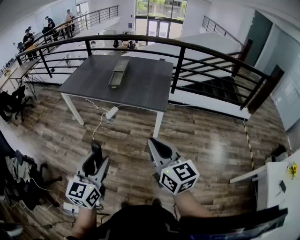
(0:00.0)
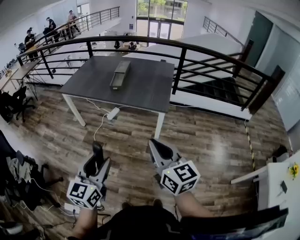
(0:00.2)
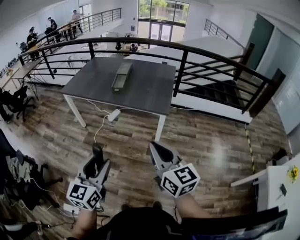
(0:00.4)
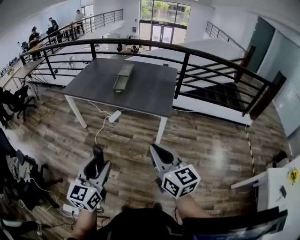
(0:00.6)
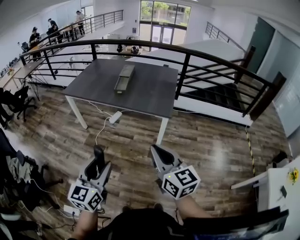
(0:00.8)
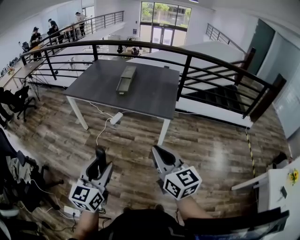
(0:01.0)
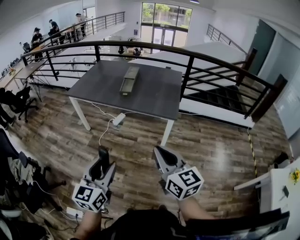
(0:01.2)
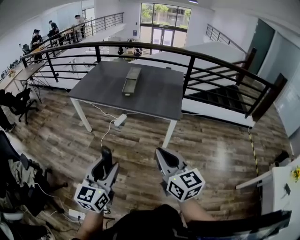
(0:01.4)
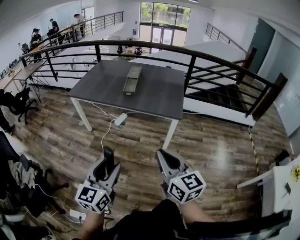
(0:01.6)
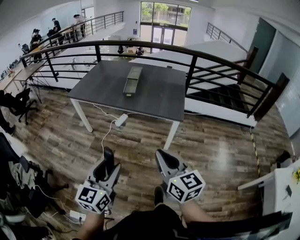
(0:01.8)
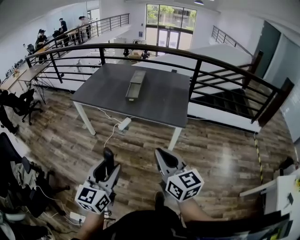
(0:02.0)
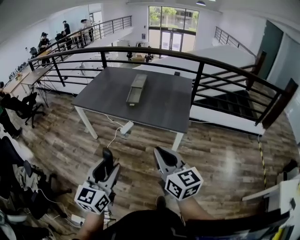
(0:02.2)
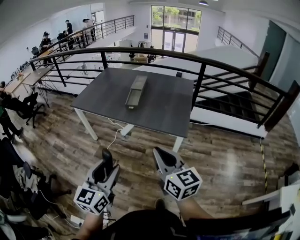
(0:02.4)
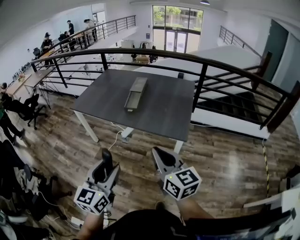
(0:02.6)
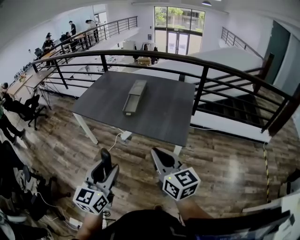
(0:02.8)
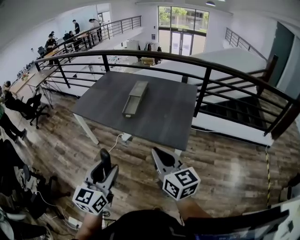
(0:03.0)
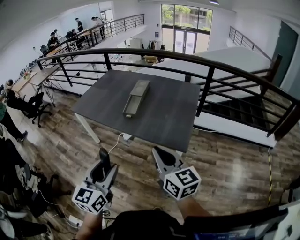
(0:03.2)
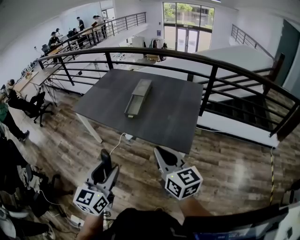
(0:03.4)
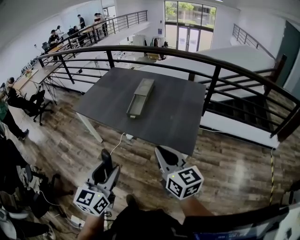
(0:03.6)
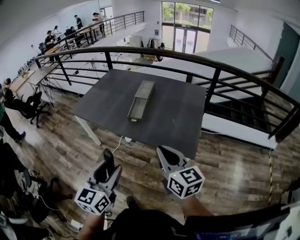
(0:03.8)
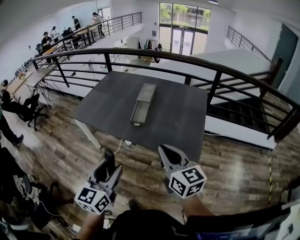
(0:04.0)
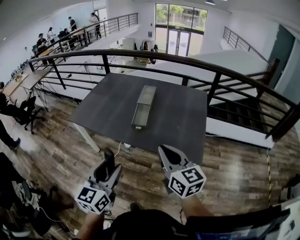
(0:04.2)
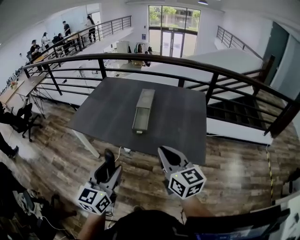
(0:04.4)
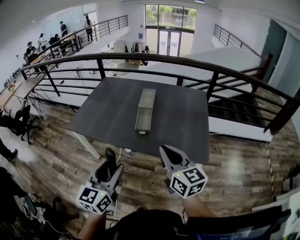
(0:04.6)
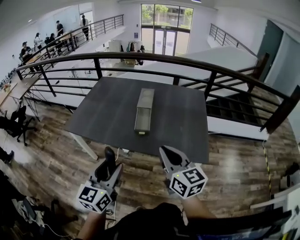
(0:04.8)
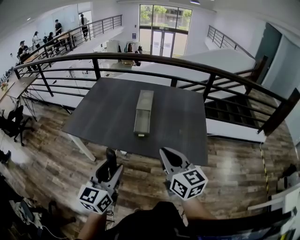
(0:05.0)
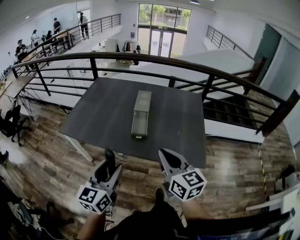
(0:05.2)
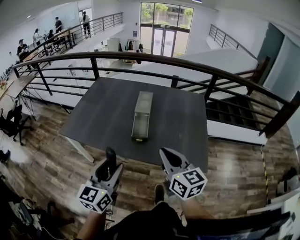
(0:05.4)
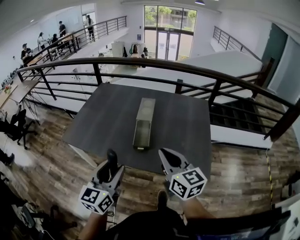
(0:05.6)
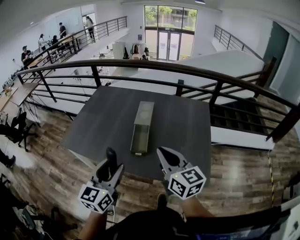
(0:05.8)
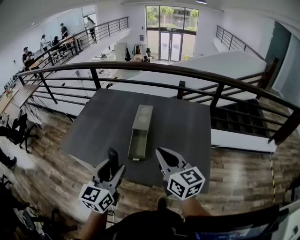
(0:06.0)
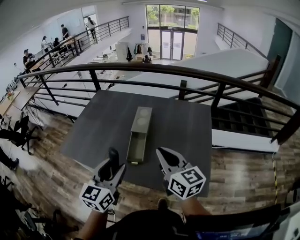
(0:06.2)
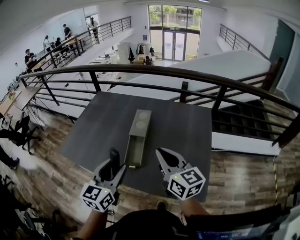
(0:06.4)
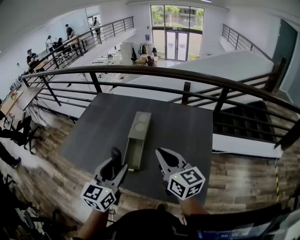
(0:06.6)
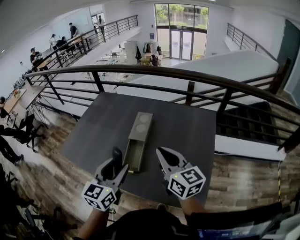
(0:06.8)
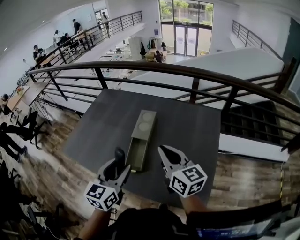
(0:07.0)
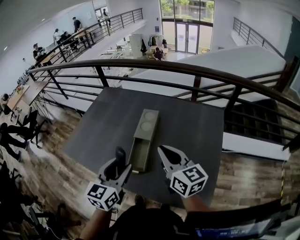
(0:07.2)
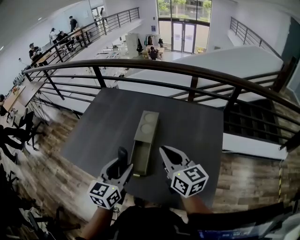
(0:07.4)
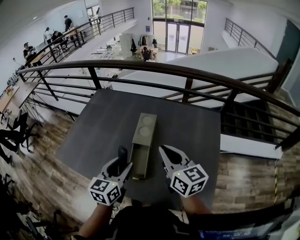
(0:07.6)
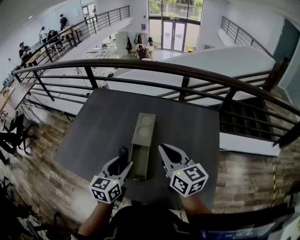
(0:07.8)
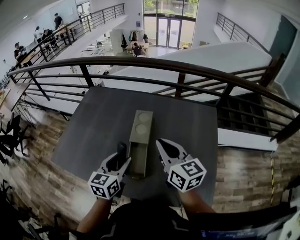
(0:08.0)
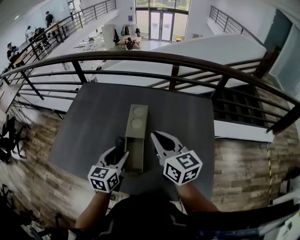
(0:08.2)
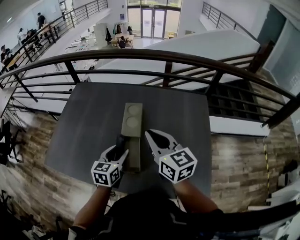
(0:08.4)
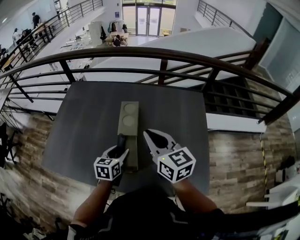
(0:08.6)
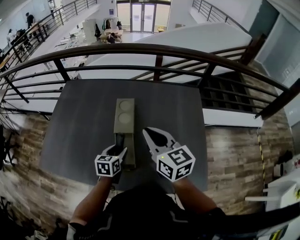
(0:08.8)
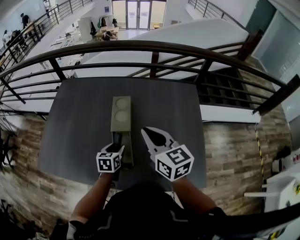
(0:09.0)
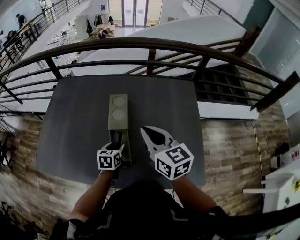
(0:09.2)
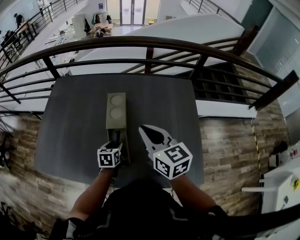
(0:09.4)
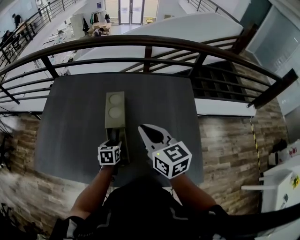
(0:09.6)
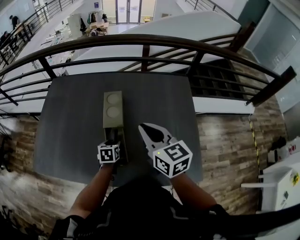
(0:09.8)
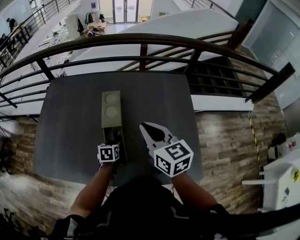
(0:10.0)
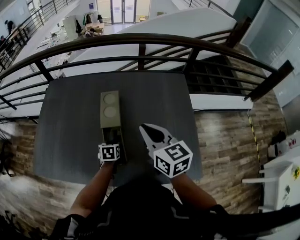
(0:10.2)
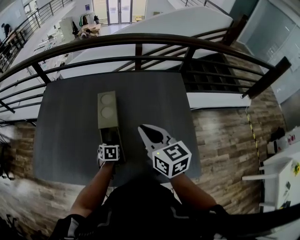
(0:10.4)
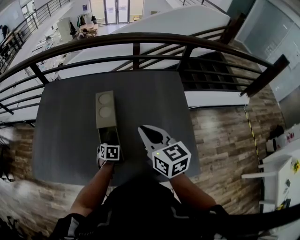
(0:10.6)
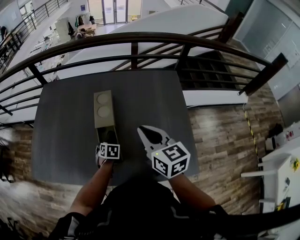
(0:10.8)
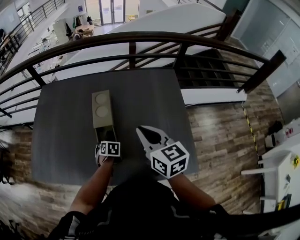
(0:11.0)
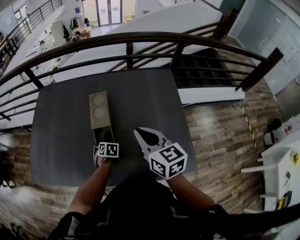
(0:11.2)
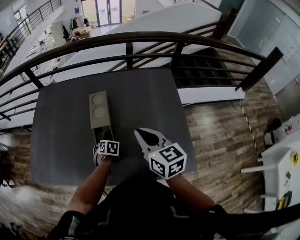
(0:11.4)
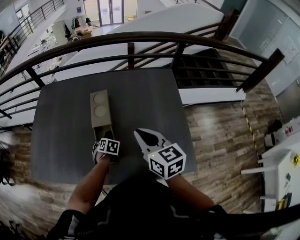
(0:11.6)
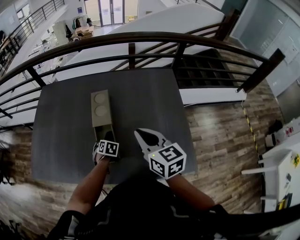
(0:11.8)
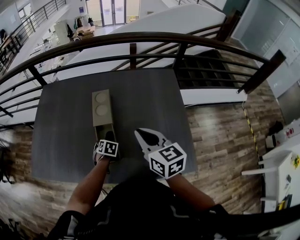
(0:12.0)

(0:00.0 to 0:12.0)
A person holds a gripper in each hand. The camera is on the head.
0:00.0 - 0:01.6: Both grippers move to the left, roughly 10 cm.
0:01.6 - 0:03.0: Both grippers travel together forward and to the right, about 25 cm.
0:03.0 - 0:04.4: Both grippers travel together forward and to the left, approximately 25 cm.
0:04.4 - 0:06.0: Both grippers travel together forward, some 25 cm.
0:06.0 - 0:07.6: The grippers both shift forward by roughly 20 cm.
0:07.6 - 0:09.0: The right gripper changes place by approximately 5 cm. Meanwhile the left gripper goes roughly 25 cm downward and forward, and changes its angle by some 30 degrees.
0:09.0 - 0:10.4: The left gripper is displaced downward by roughly 10 cm, and turns by some 20 degrees.
0:10.4 - 0:12.0: There are only small adjustments of the grippers.

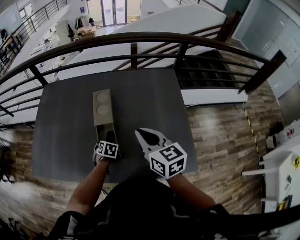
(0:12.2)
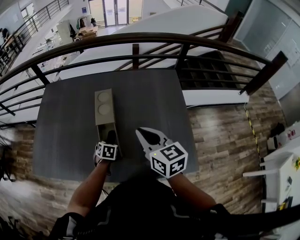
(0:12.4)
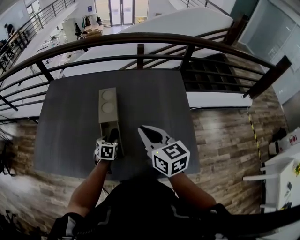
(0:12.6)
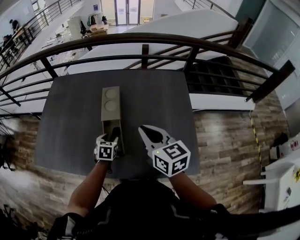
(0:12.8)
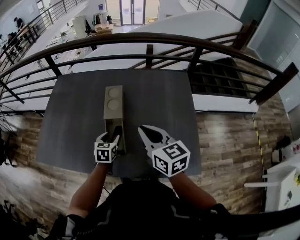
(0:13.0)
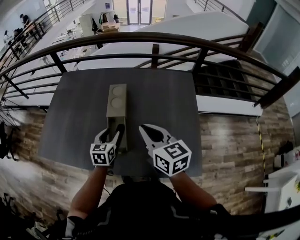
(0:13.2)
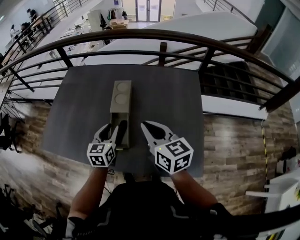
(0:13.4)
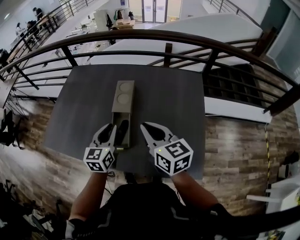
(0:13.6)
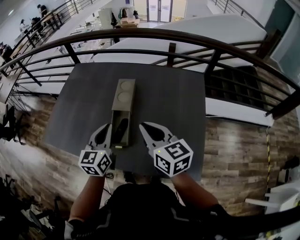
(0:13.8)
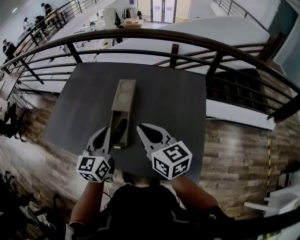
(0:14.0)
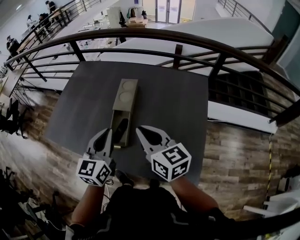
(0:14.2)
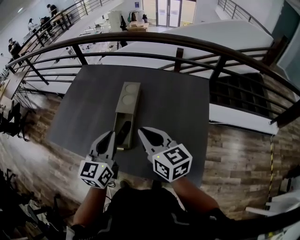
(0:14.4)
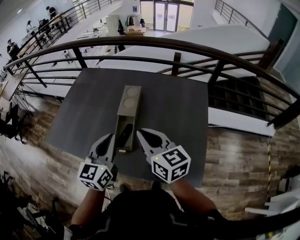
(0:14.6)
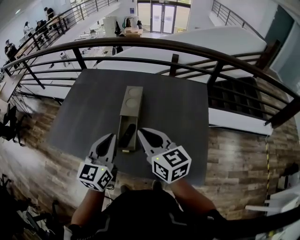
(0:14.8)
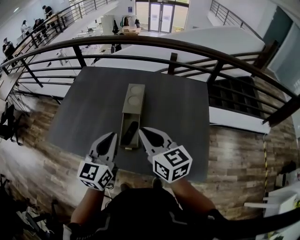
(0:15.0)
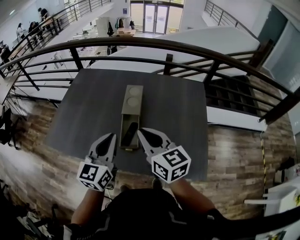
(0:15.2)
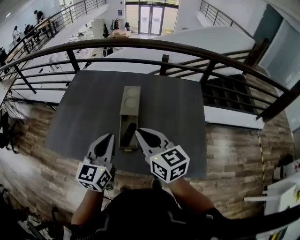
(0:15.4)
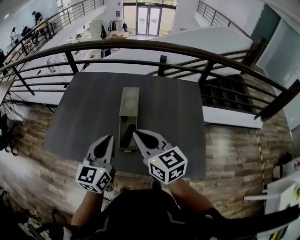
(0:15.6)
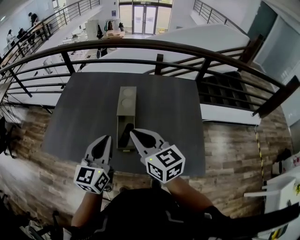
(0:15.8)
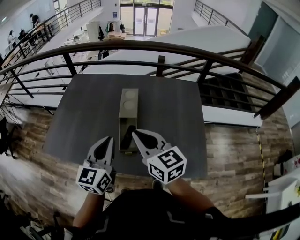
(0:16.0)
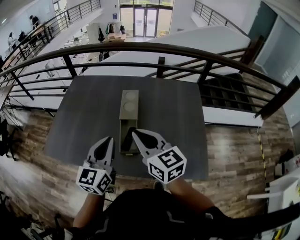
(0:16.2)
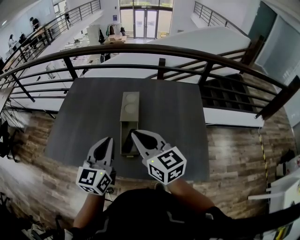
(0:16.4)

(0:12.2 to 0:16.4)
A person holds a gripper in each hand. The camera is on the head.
0:12.2 - 0:13.6: The left gripper is displaced upward by approximately 25 cm, points its fingers some 50 degrees further upward, and closes up.
0:13.6 - 0:15.0: The left gripper is displaced upward, backward and to the left by approximately 15 cm; the right gripper goes about 10 cm to the left.
0:15.0 - 0:16.4: The grippers stay close to where they were, moving slightly.

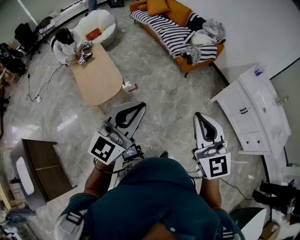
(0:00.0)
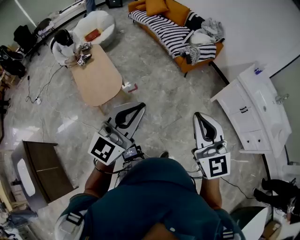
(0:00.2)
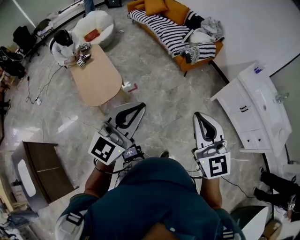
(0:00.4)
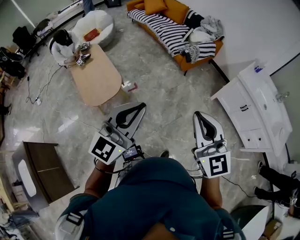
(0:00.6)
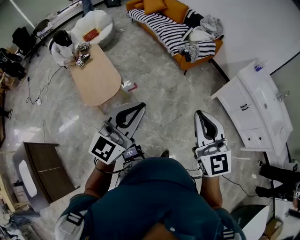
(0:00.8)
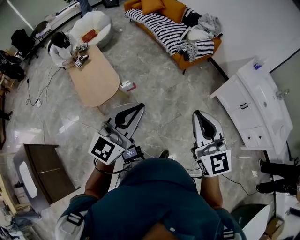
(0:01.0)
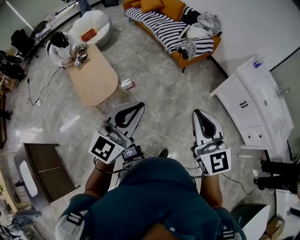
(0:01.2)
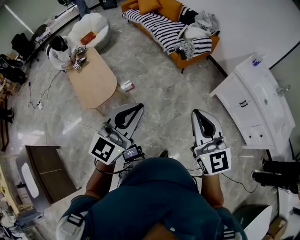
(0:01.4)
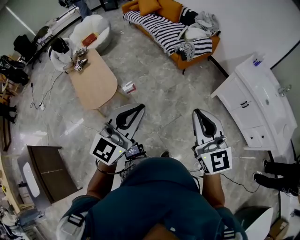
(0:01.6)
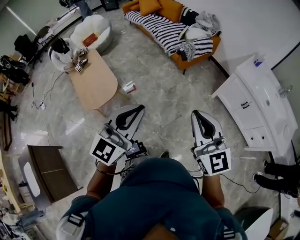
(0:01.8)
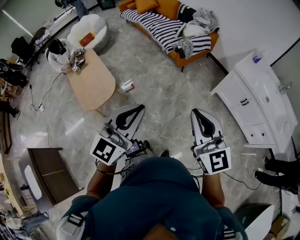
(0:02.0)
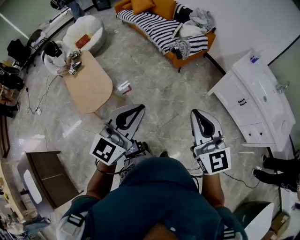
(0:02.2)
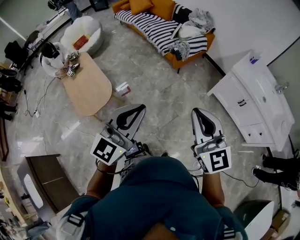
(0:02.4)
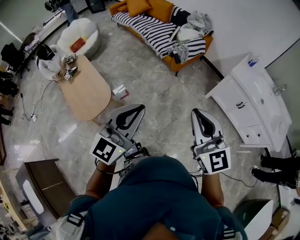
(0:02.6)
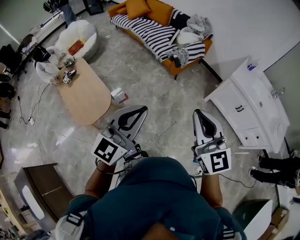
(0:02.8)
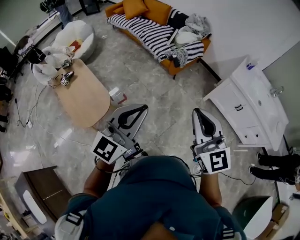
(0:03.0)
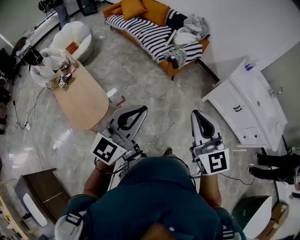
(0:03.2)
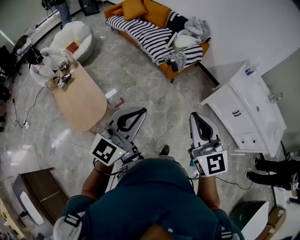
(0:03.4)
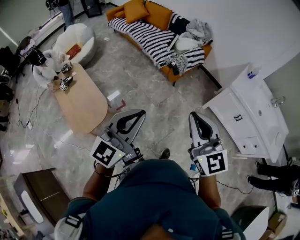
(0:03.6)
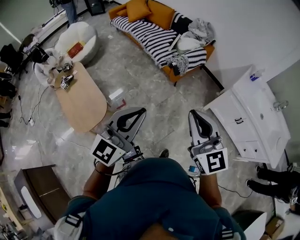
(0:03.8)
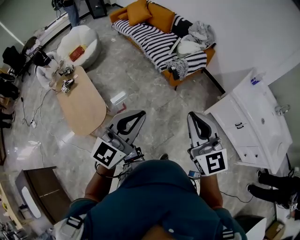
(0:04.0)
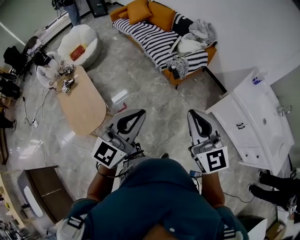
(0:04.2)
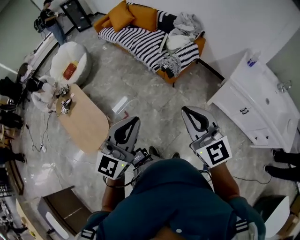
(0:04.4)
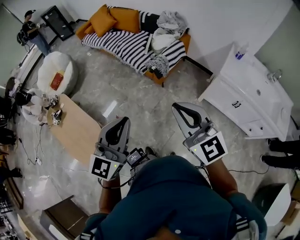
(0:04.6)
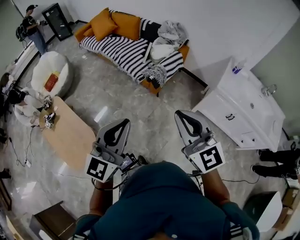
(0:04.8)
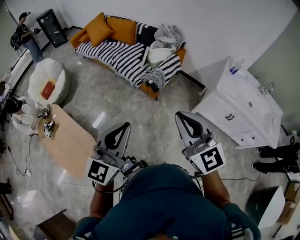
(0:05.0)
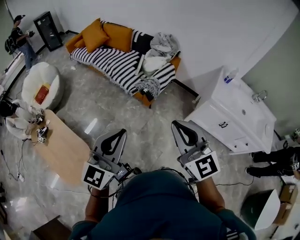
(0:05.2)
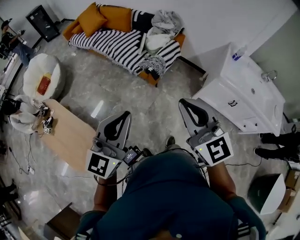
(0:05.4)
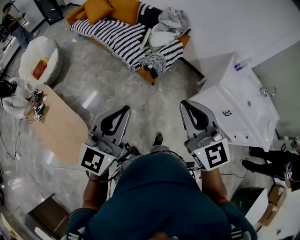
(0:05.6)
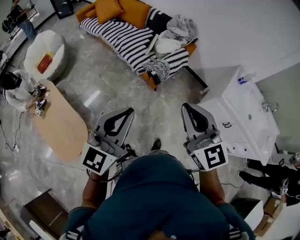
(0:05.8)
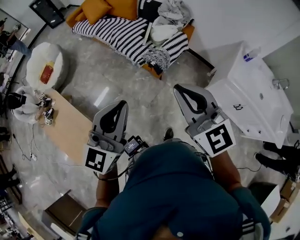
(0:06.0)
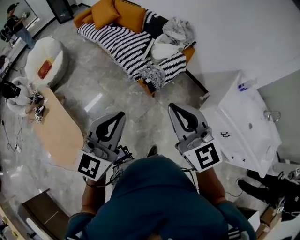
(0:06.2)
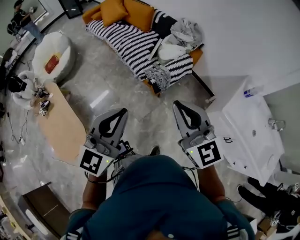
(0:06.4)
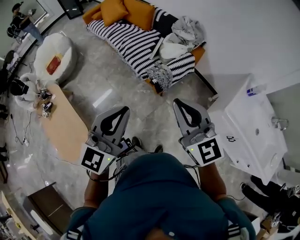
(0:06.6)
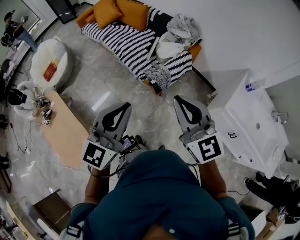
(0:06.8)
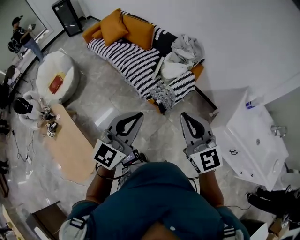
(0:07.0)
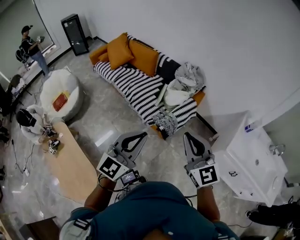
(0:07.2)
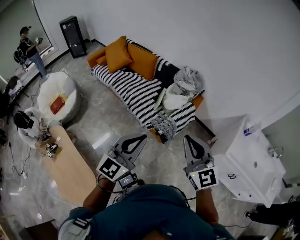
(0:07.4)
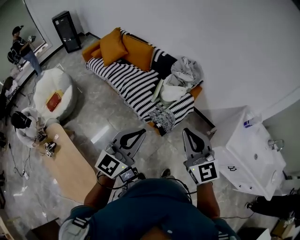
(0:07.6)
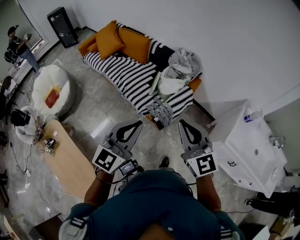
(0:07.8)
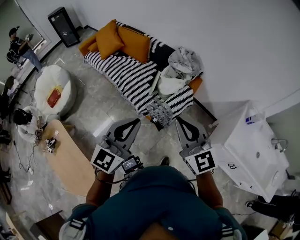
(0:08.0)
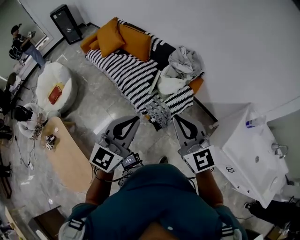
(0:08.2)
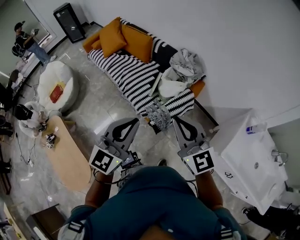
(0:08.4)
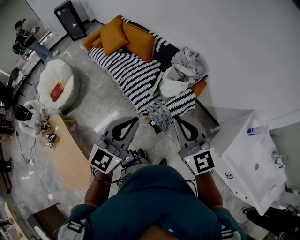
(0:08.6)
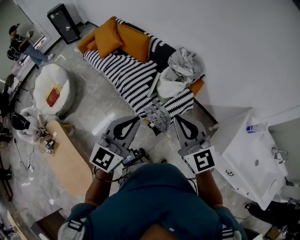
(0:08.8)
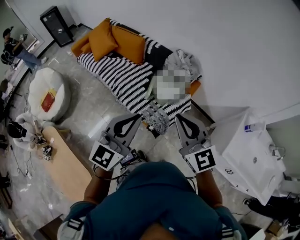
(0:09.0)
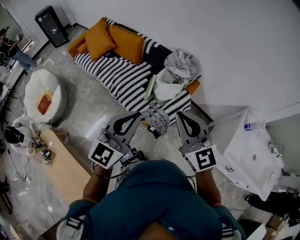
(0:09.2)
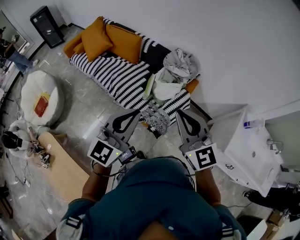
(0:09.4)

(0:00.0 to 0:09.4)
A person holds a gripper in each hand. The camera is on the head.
0:00.0 - 0:01.6: The two grippers go approximately 10 cm to the right.
0:01.6 - 0:03.2: The two grippers go roughly 15 cm forward and to the left.
0:03.2 - 0:04.8: The grippers both shift forward by about 20 cm.
0:04.8 - 0:06.2: The two grippers go roughly 15 cm forward.
0:06.2 - 0:07.8: The two grippers go roughly 25 cm forward.
0:07.8 - 0:09.4: The grippers both shift forward by some 20 cm.
